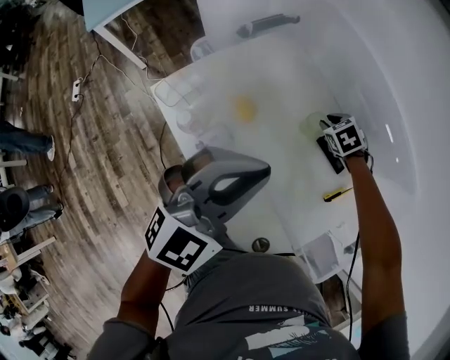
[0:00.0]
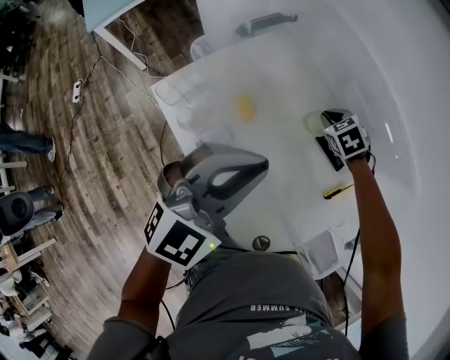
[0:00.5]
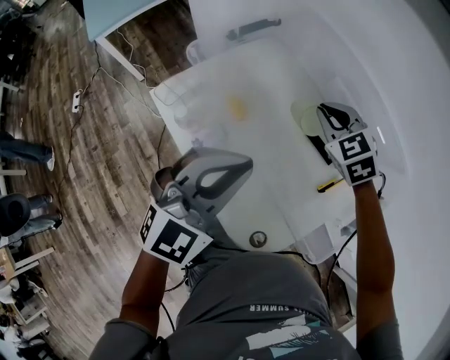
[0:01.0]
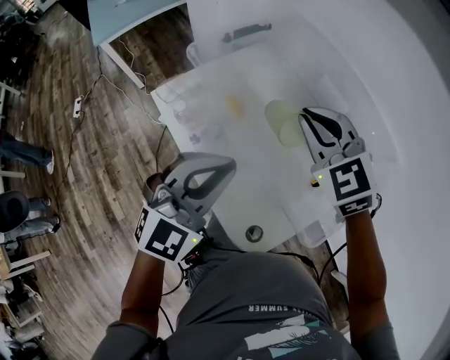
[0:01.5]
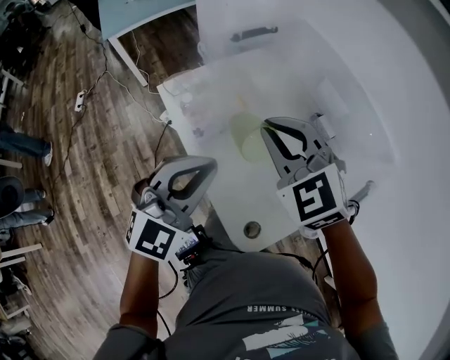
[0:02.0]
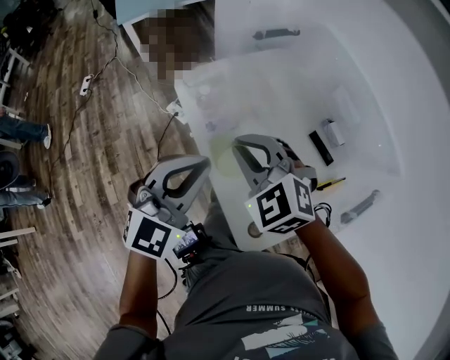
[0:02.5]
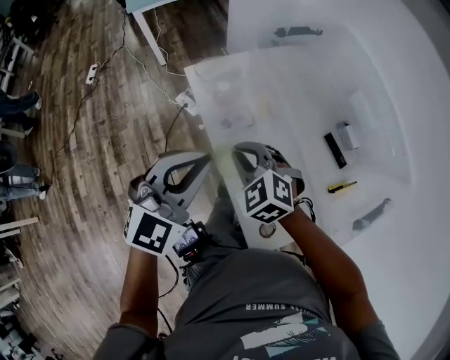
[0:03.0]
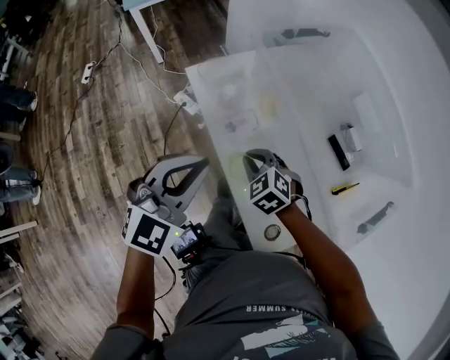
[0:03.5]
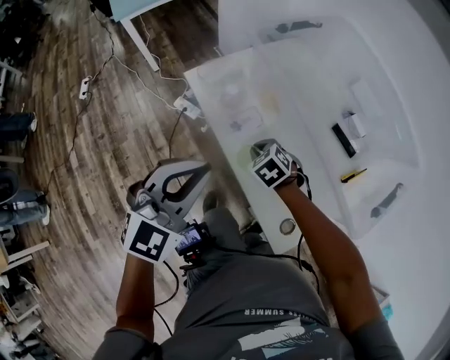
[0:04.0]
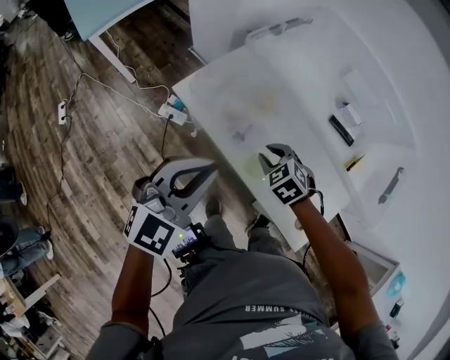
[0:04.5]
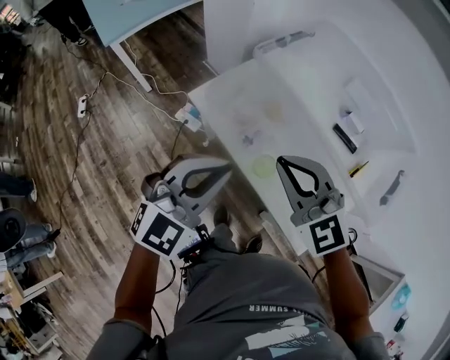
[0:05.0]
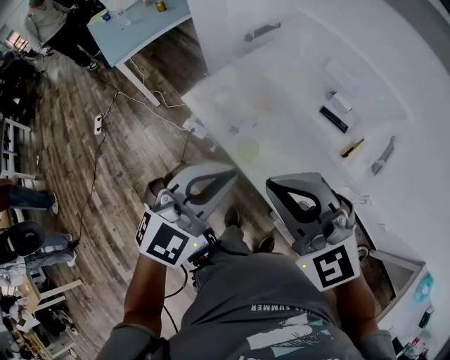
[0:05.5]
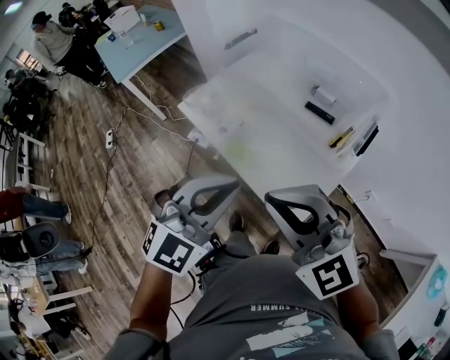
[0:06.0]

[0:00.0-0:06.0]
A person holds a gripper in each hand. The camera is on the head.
0:00.0 to 0:02.0: The left gripper goes approximately 15 cm backward; the right gripper is displaced upward, backward and to the left by some 40 cm, points its fingers approximately 40 degrees further upward, and closes up.
0:02.0 to 0:04.0: The right gripper is displaced downward by about 30 cm, and points its fingers approximately 40 degrees further downward; the left gripper goes approximately 15 cm to the left.
0:04.0 to 0:06.0: The right gripper is displaced upward and backward by approximately 50 cm, and angles its fingers upward, by some 60 degrees. The left gripper moves to the right, backward and upward, approximately 20 cm, and changes its angle by approximately 20 degrees.

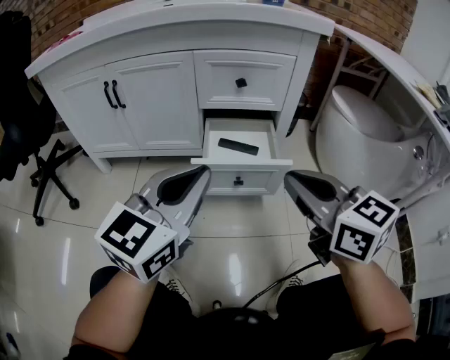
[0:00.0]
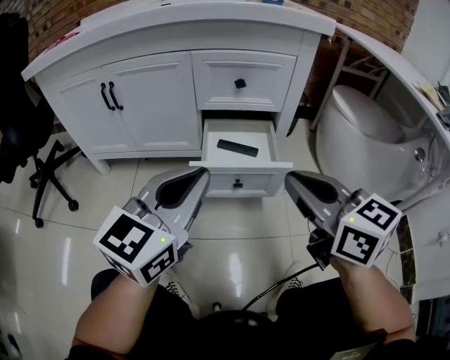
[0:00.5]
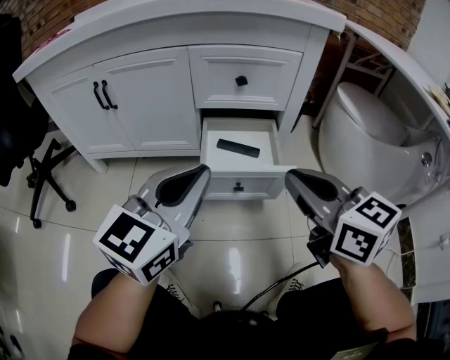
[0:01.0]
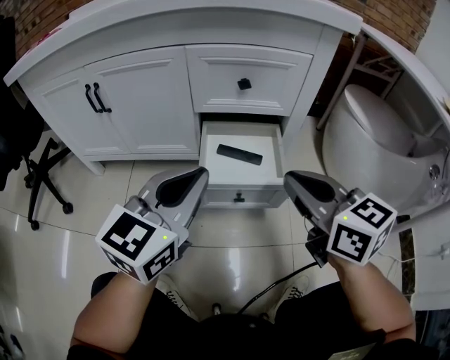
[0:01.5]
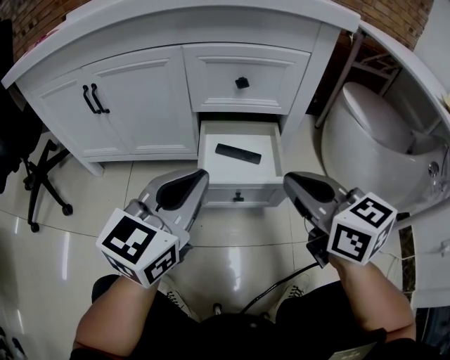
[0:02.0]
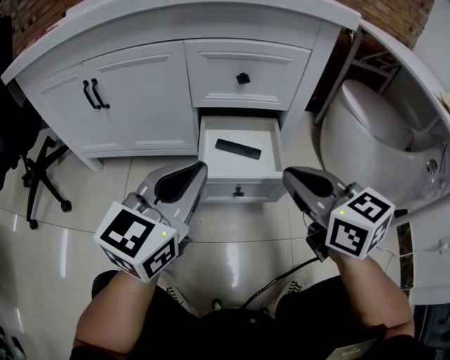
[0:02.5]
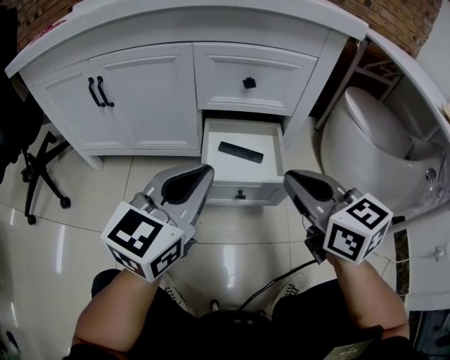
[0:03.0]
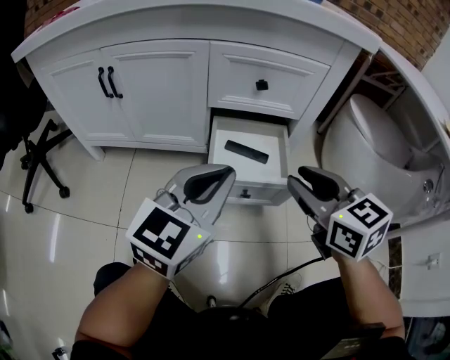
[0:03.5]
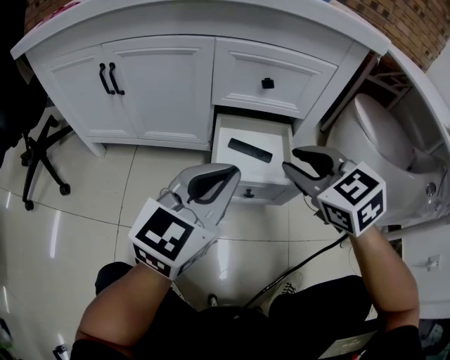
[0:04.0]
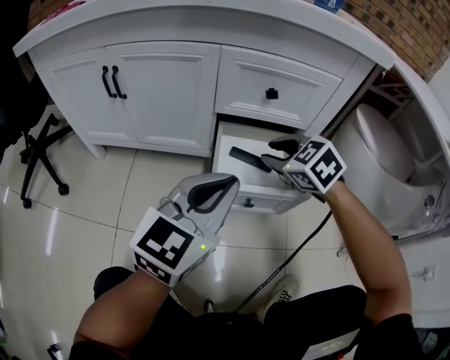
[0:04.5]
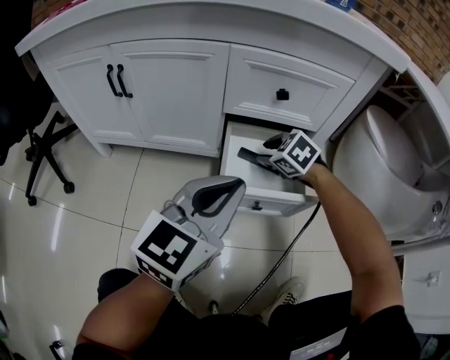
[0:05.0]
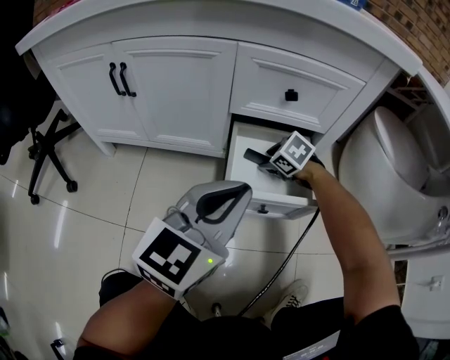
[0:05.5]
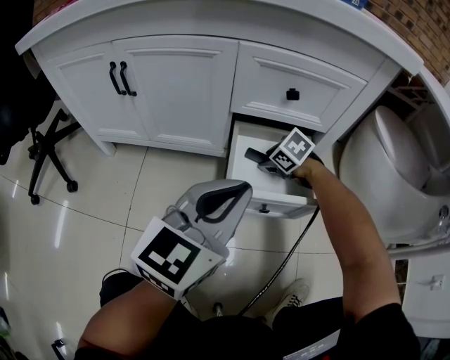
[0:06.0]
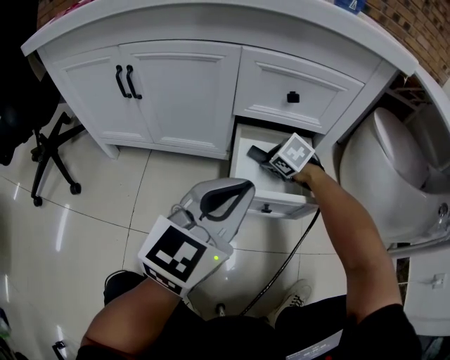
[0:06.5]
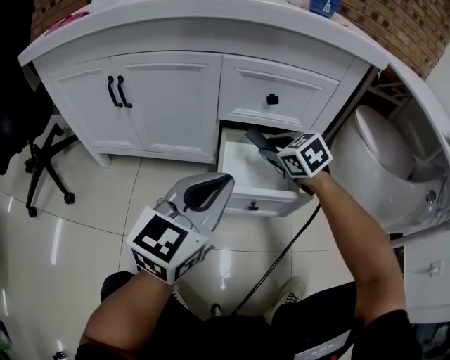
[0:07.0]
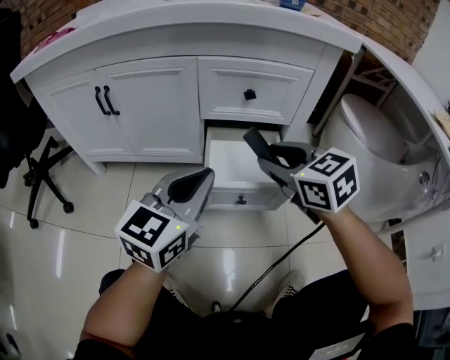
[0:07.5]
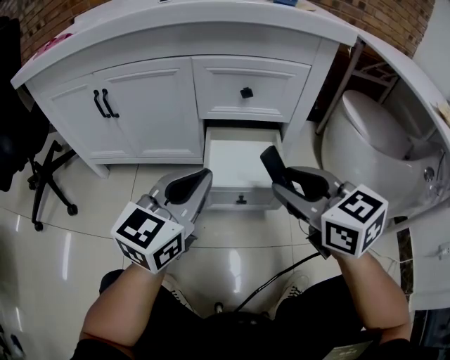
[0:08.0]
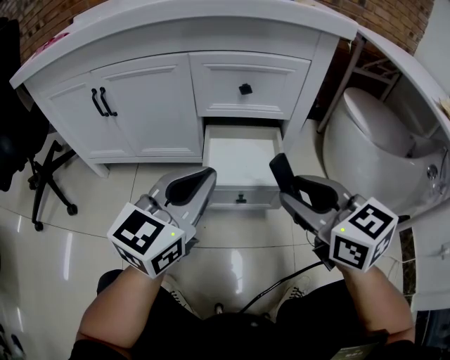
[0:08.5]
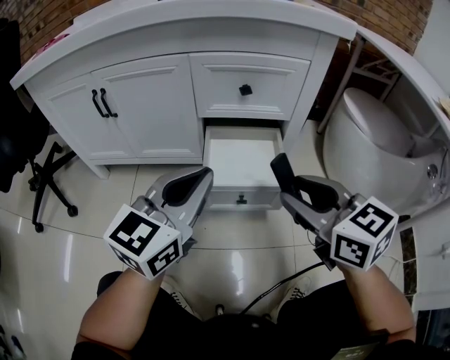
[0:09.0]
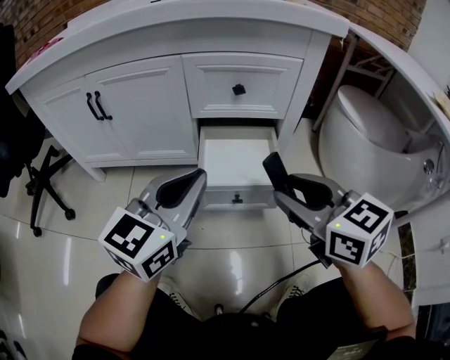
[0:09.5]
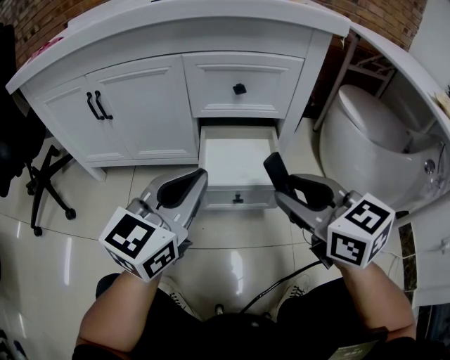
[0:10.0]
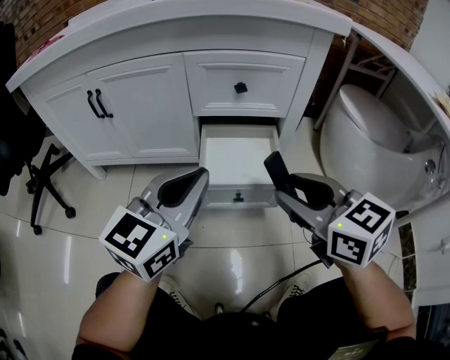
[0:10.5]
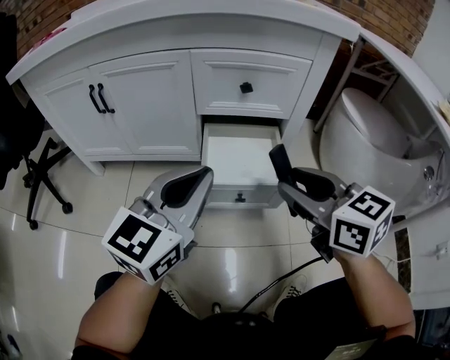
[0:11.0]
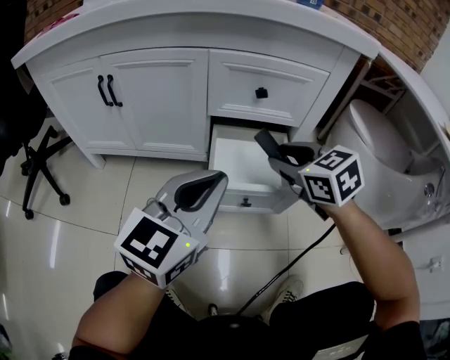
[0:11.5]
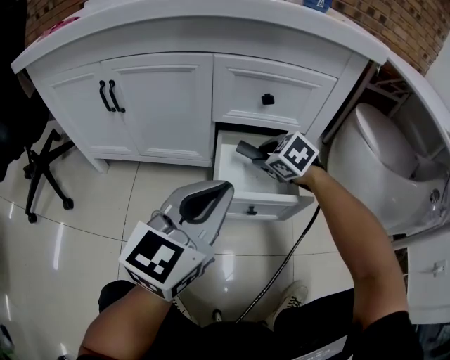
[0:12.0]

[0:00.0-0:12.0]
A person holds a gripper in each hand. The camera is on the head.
0:00.0 to 0:02.0: The two grippers go approximately 10 cm forward.
0:02.0 to 0:04.0: The right gripper changes place by about 5 cm, rotates about 30 degrees, and opens its fingers.
0:04.0 to 0:06.0: The right gripper moves downward and forward, roughly 30 cm, changes its angle by about 30 degrees, and opens up.
0:06.0 to 0:08.0: The right gripper is displaced upward and backward by roughly 35 cm, and angles its fingers upward, by roughly 40 degrees.
0:08.0 to 0:10.0: The grippers move only a little.
0:10.0 to 0:12.0: The right gripper is displaced forward and downward by roughly 25 cm, and points its fingers approximately 30 degrees further downward.

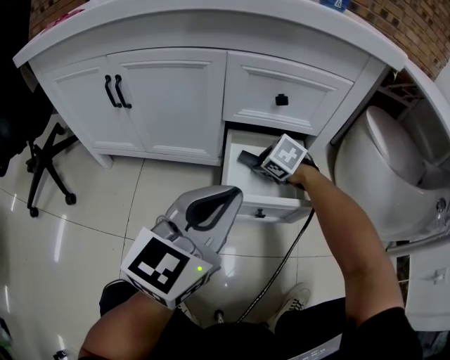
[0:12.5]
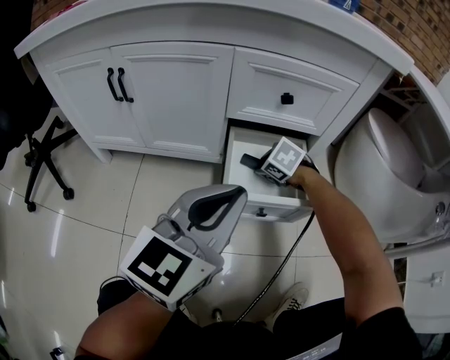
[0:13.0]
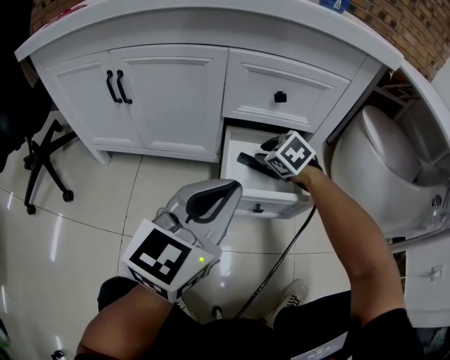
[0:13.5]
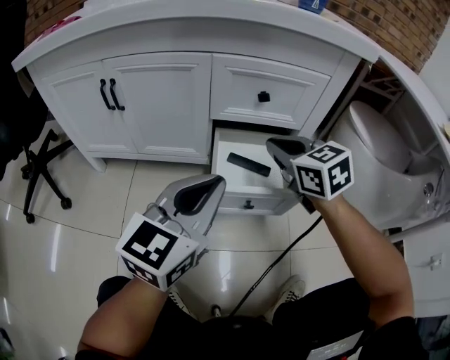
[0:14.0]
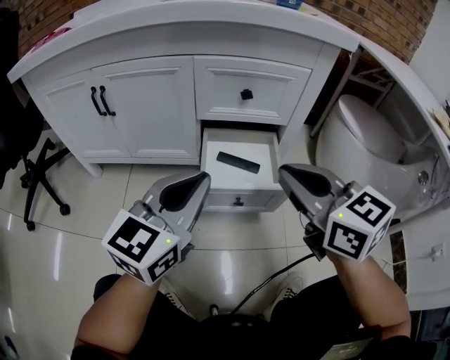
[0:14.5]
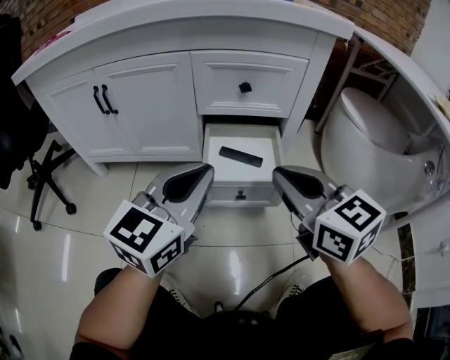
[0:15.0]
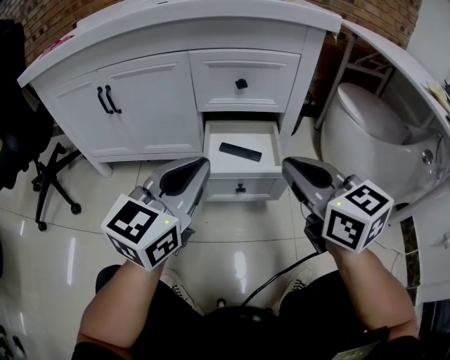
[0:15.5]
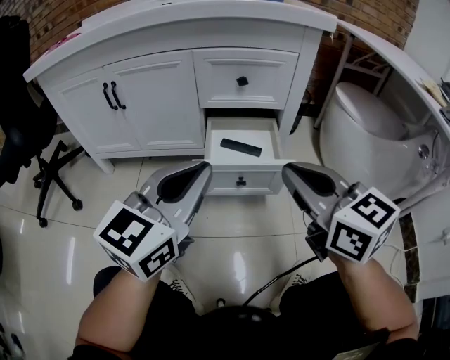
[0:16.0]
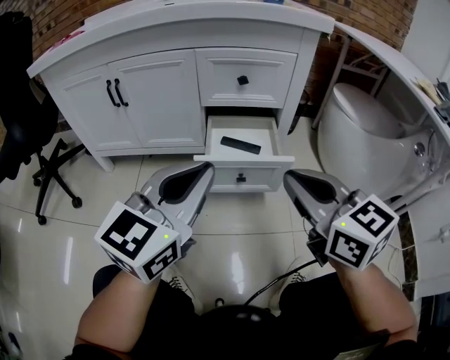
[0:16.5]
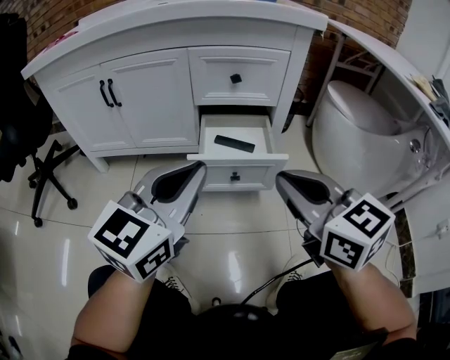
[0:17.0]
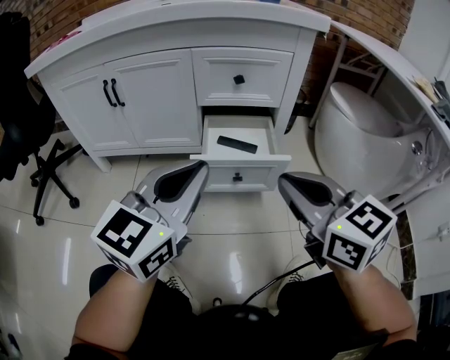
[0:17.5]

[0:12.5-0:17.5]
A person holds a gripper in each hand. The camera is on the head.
0:12.5 to 0:15.0: The right gripper goes approximately 30 cm upward and backward, points its fingers about 50 degrees further upward, and closes its fingers.
0:15.0 to 0:17.5: The two grippers go about 10 cm backward.

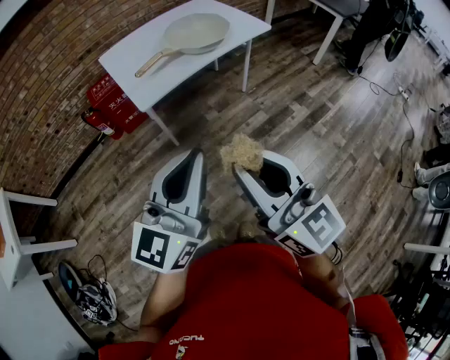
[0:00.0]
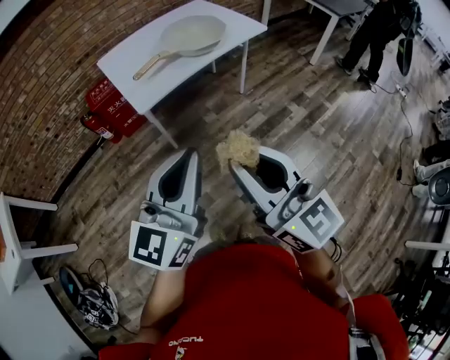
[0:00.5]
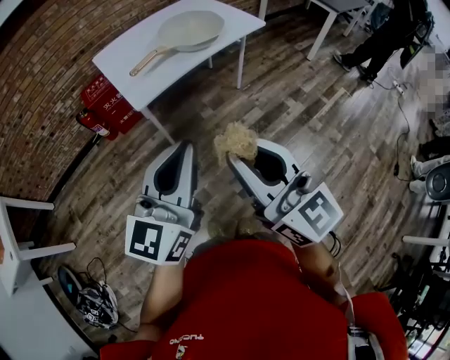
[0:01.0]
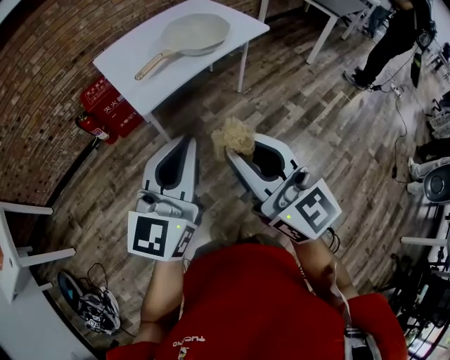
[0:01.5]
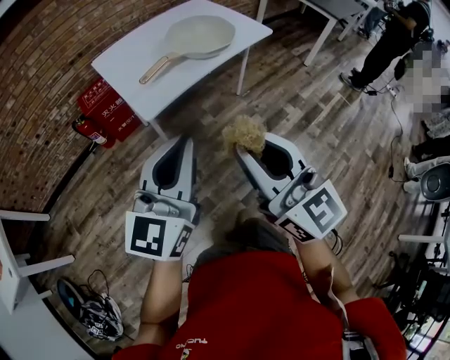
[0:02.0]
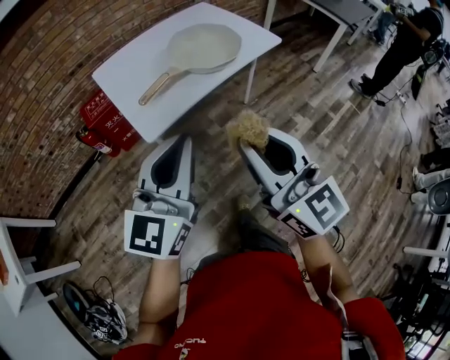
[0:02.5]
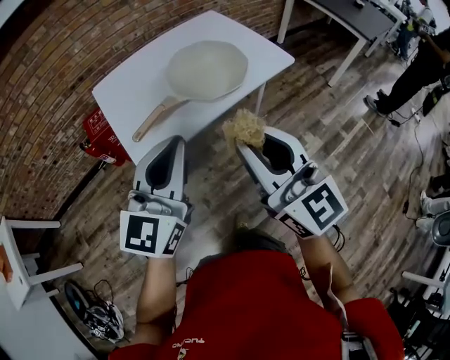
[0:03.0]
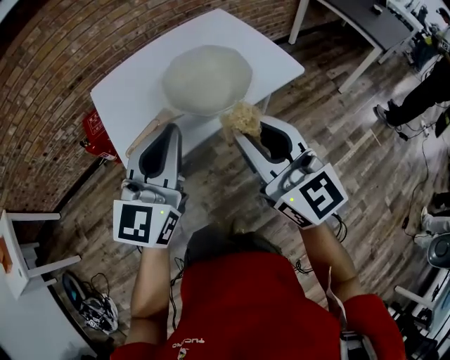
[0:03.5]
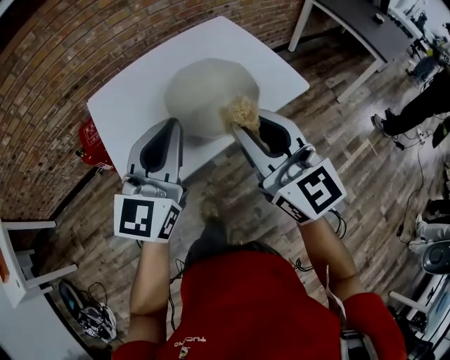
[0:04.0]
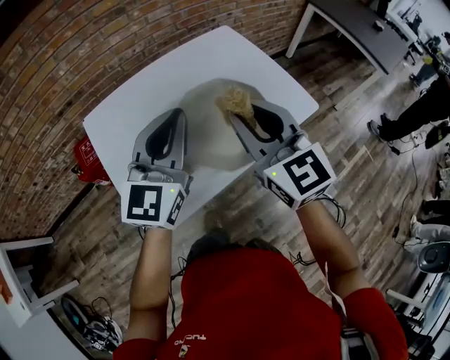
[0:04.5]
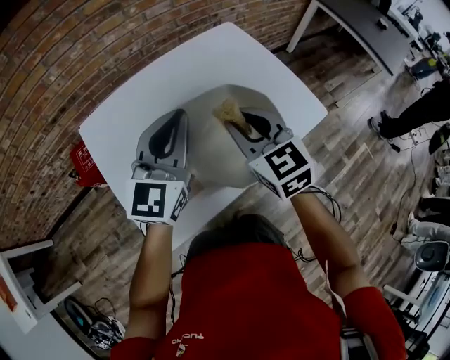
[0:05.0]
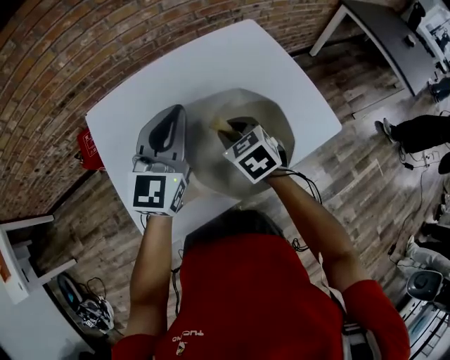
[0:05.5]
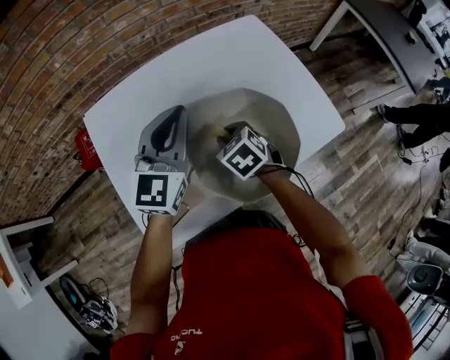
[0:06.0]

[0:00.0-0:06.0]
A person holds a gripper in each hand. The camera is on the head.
0:00.0 to 0:02.0: Both grippers move forward and to the left, roughly 10 cm.
0:02.0 to 0:04.0: The pair of grippers is taken forward, some 40 cm.
0:04.0 to 0:06.0: The right gripper heads downward and forward, covering some 40 cm, and points its fingers about 60 degrees further downward; the left gripper heads forward, covering roughly 25 cm.
